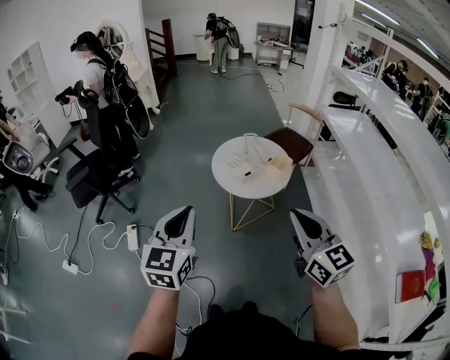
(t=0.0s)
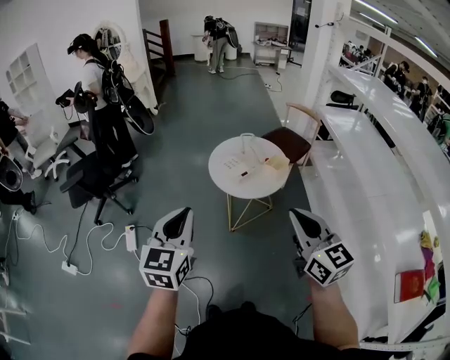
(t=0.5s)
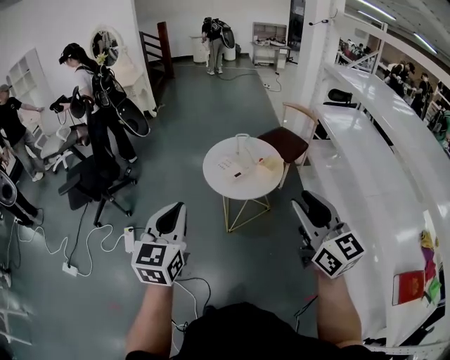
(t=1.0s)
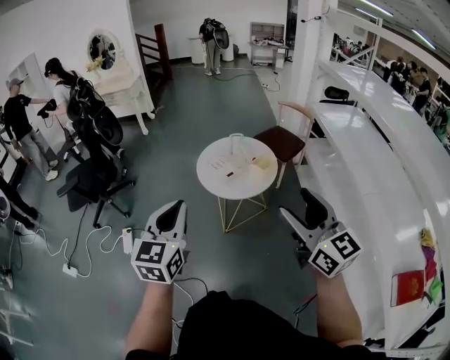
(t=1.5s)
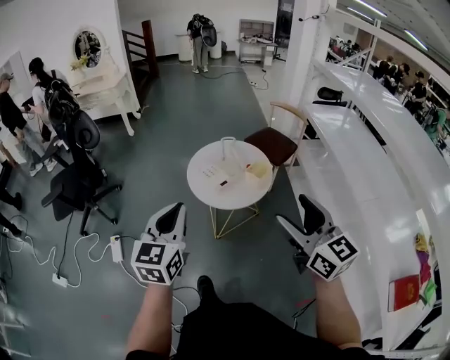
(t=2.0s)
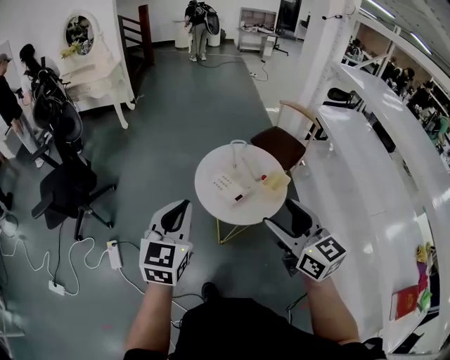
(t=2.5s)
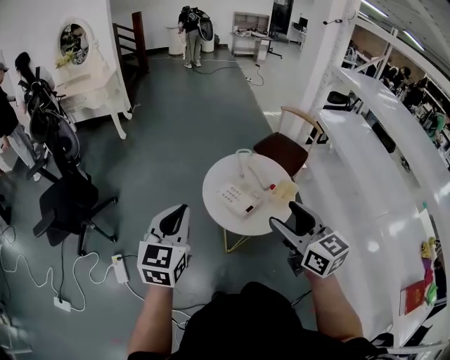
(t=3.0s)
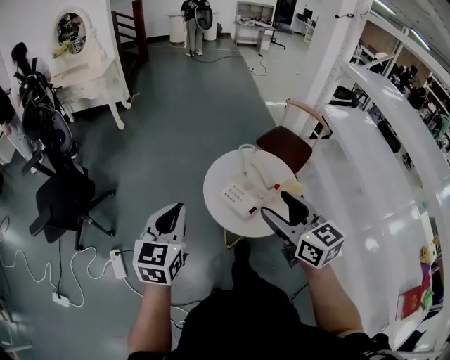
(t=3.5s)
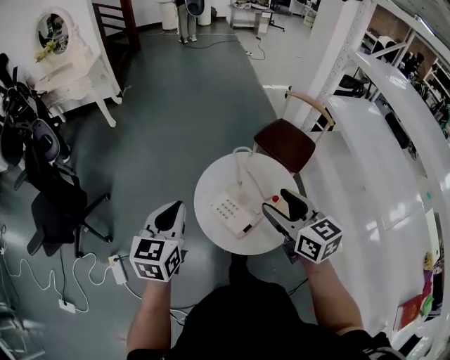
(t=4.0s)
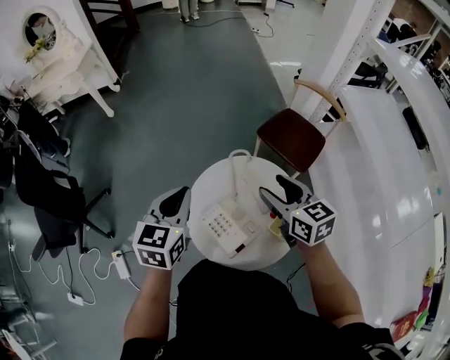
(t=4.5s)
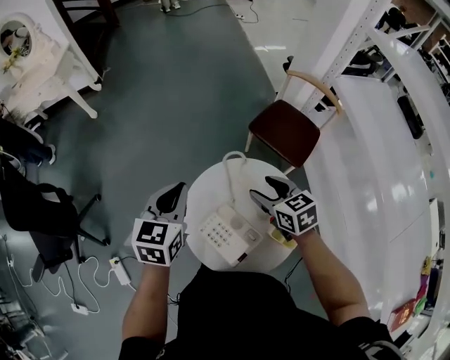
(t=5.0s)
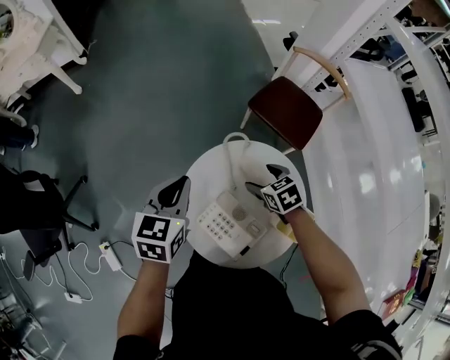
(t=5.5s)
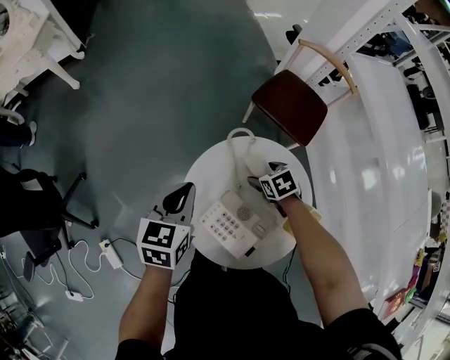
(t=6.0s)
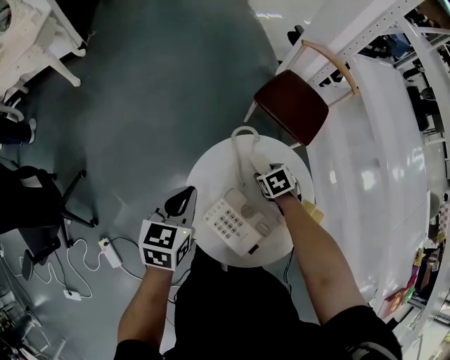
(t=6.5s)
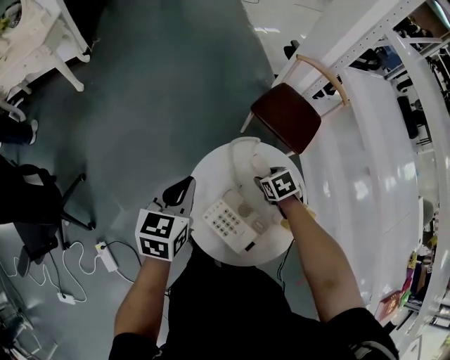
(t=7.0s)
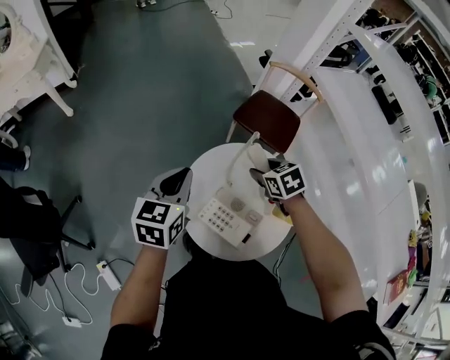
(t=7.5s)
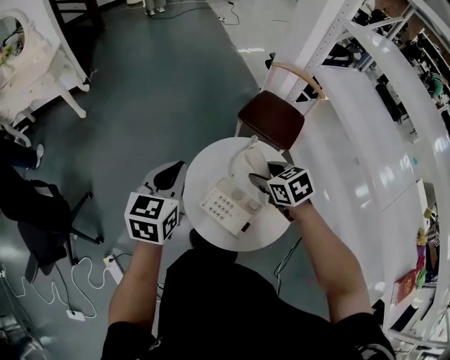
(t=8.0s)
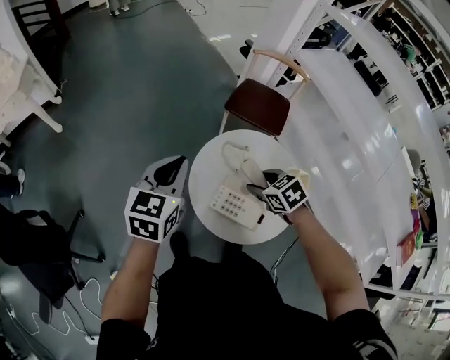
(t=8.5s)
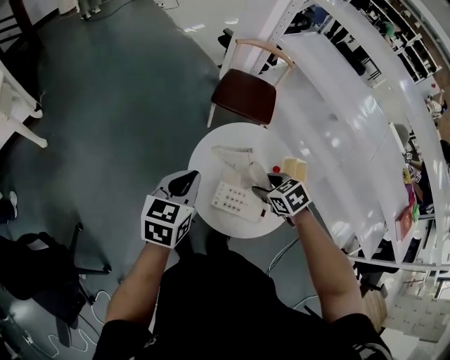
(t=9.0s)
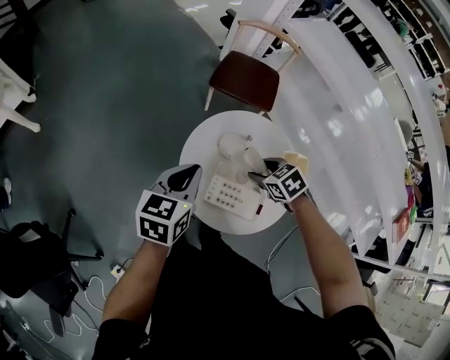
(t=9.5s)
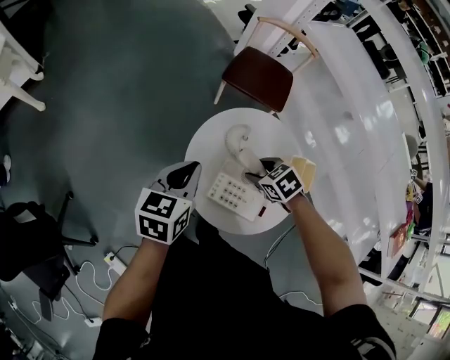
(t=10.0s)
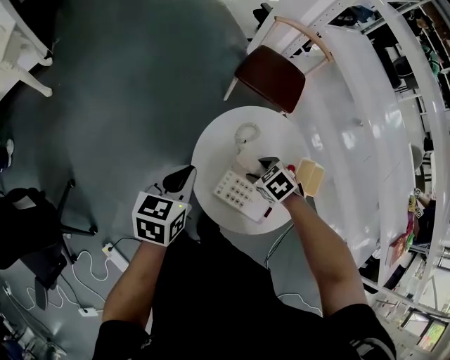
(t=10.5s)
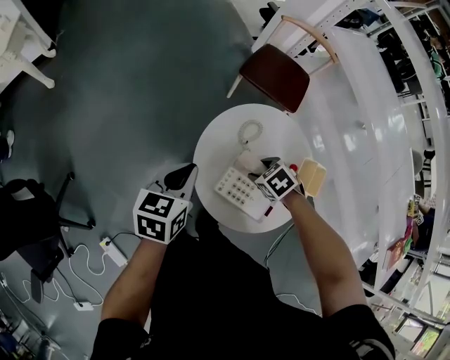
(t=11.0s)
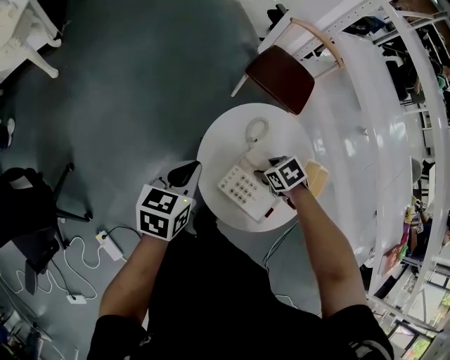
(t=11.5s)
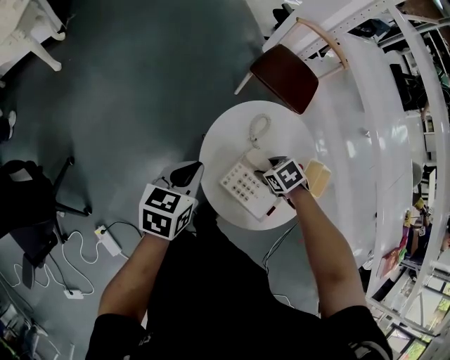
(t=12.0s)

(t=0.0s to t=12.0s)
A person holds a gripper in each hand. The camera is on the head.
t=0.0s - t=2.0s: The right gripper shifts approximately 10 cm to the right and forward, and opens its fingers, while the left gripper shifts about 10 cm forward and to the right.
t=2.0s - t=4.0s: The two grippers go some 35 cm forward.
t=4.0s - t=6.0s: The left gripper shifts approximately 25 cm forward and downward, and rotates approximately 20 degrees, while the right gripper heads downward and forward, covering roughly 40 cm, and points its fingers about 50 degrees further downward.
t=6.0s - t=8.0s: The right gripper travels upward by roughly 20 cm, and closes its fingers. The left gripper is displaced upward by some 15 cm.
t=8.0s - t=10.0s: The two grippers go some 10 cm downward. The left gripper swivels roughly 20 degrees.
t=10.0s - t=12.0s: The right gripper heads downward, covering roughly 5 cm; the left gripper shifts by approximately 10 cm.

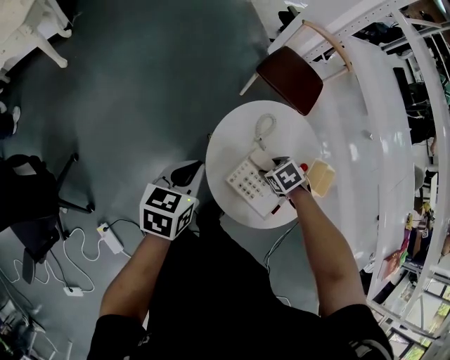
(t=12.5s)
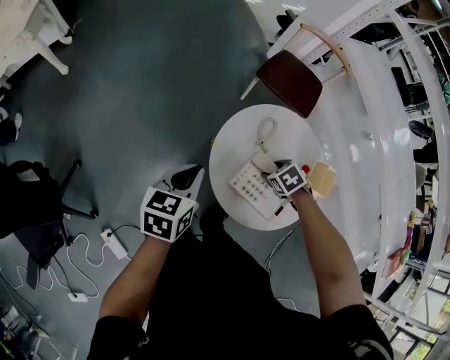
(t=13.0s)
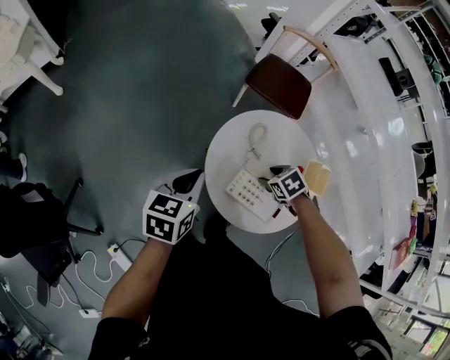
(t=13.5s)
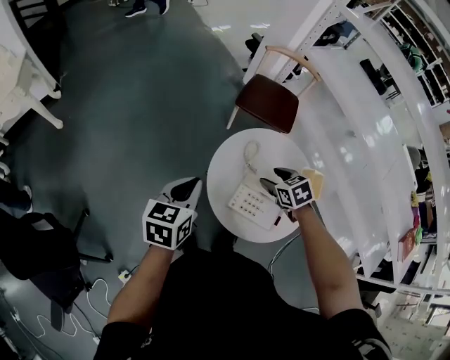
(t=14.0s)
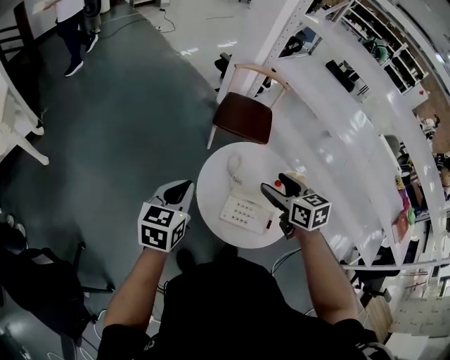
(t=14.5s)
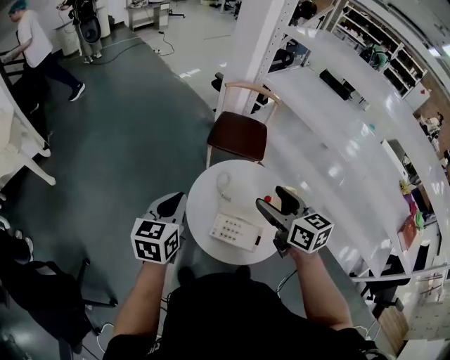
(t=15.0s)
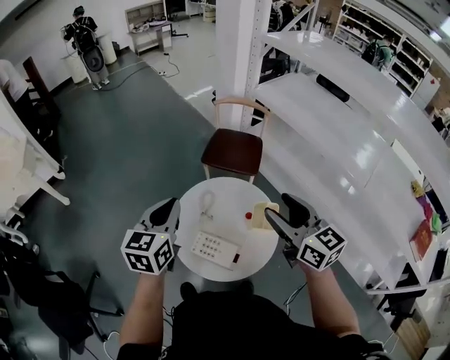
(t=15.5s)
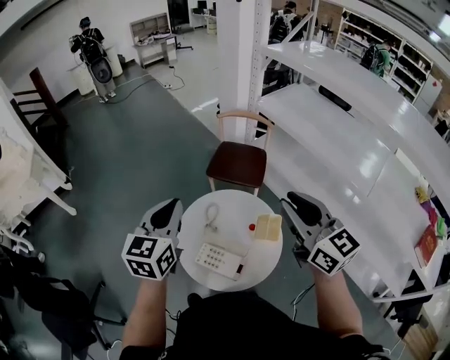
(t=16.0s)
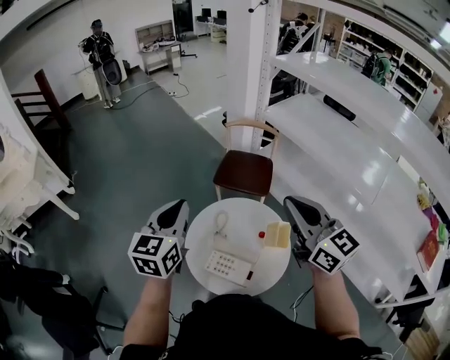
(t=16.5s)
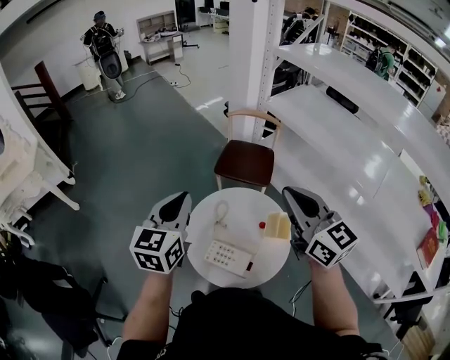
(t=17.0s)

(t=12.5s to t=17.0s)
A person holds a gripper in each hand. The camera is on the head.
t=12.5s - t=14.5s: The right gripper travels upward by roughly 25 cm, and angles its fingers upward, by about 50 degrees. The left gripper is displaced upward by roughly 10 cm, and rotates roughly 20 degrees.
t=14.5s - t=17.0s: The two grippers go some 25 cm upward and to the right. The right gripper angles its fingers upward, by approximately 30 degrees, and closes.

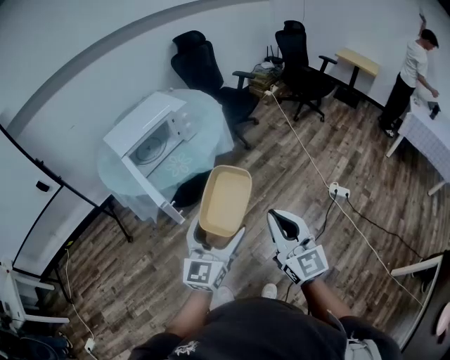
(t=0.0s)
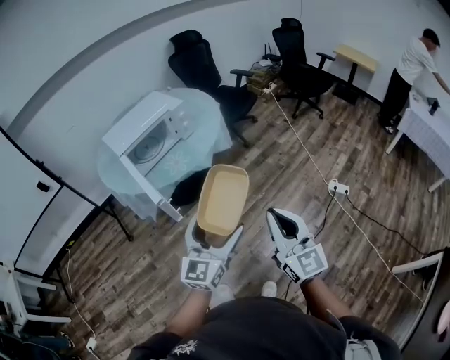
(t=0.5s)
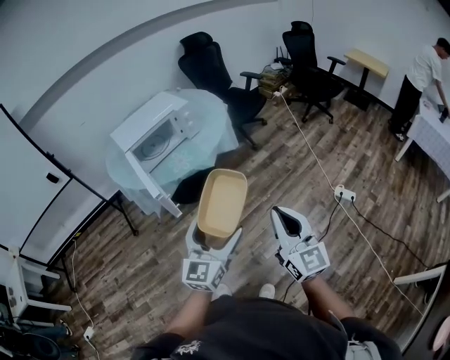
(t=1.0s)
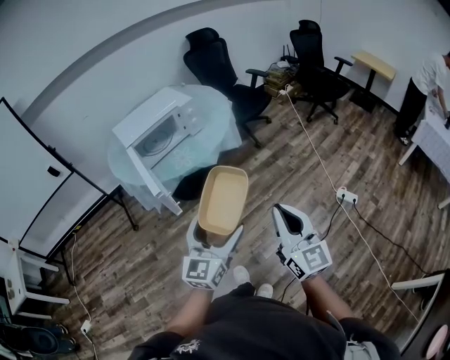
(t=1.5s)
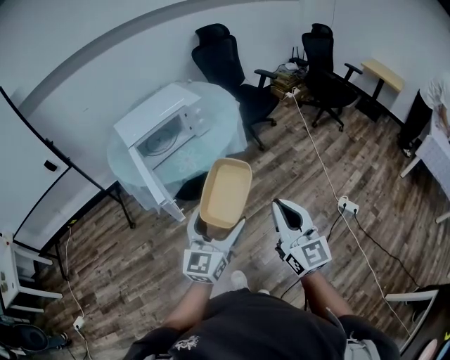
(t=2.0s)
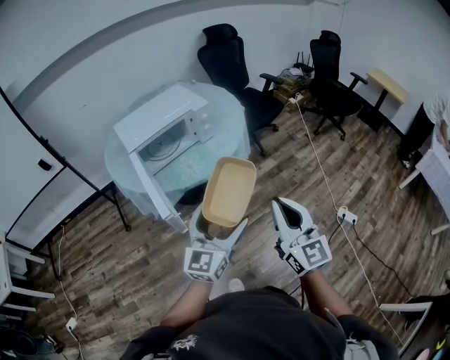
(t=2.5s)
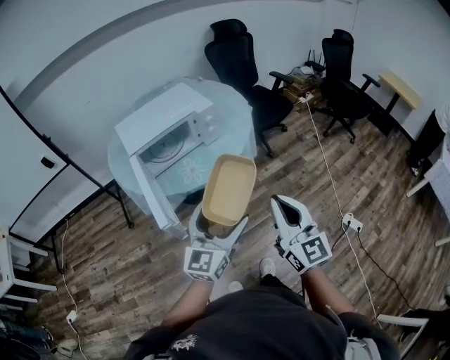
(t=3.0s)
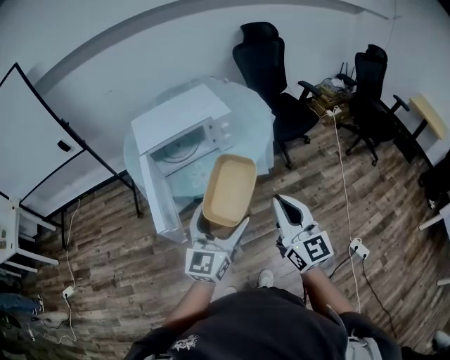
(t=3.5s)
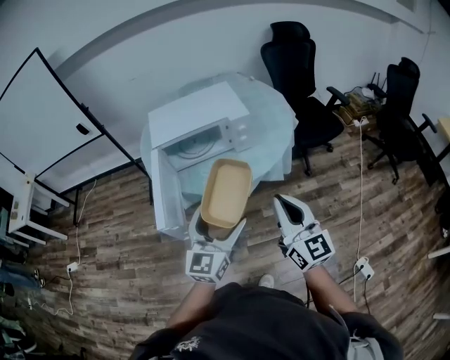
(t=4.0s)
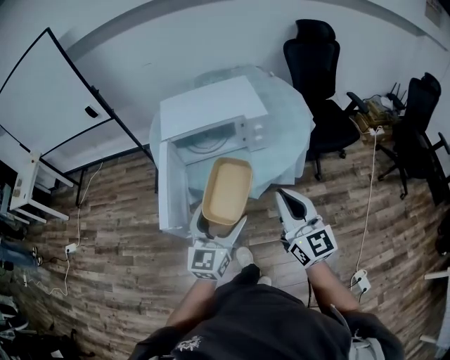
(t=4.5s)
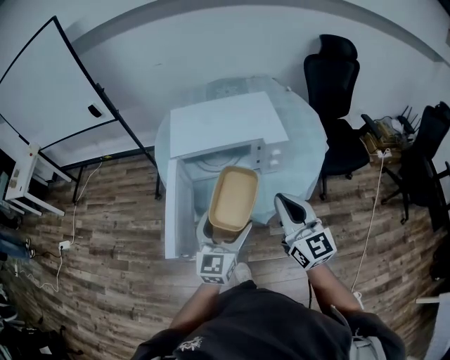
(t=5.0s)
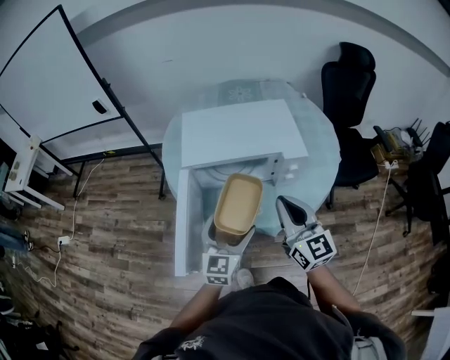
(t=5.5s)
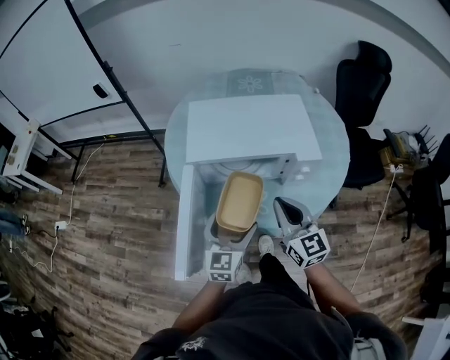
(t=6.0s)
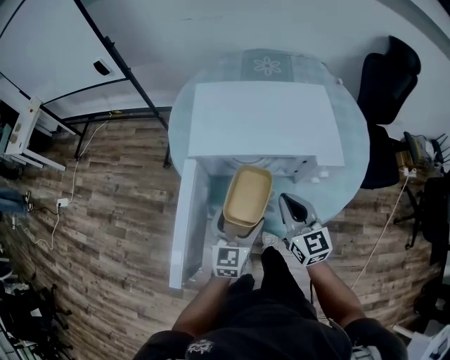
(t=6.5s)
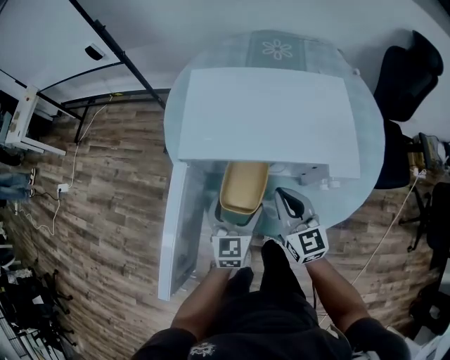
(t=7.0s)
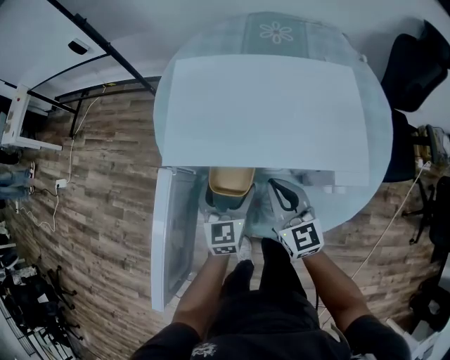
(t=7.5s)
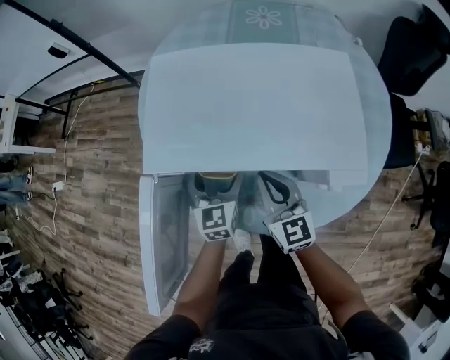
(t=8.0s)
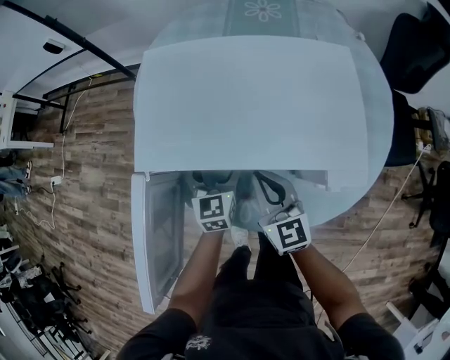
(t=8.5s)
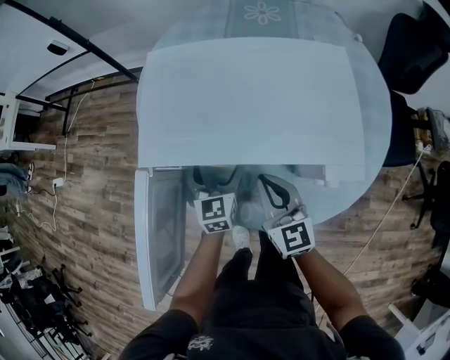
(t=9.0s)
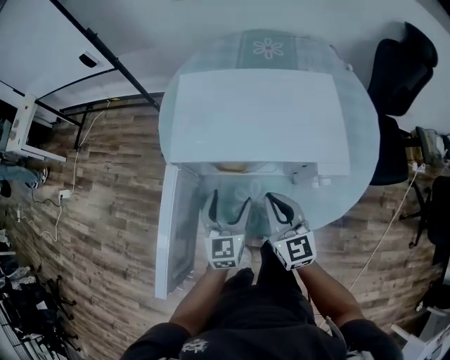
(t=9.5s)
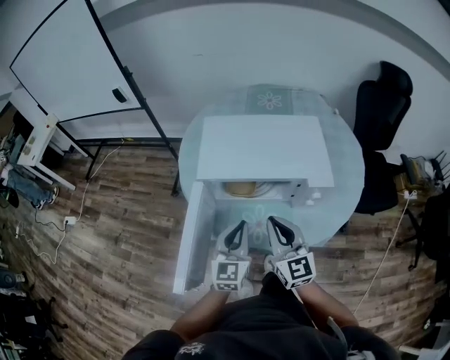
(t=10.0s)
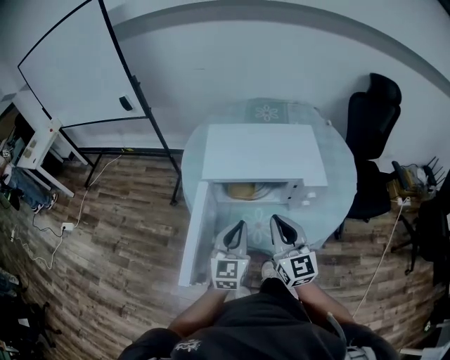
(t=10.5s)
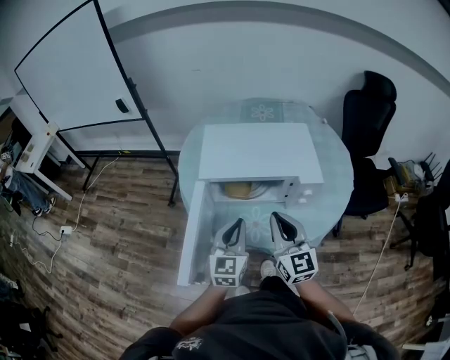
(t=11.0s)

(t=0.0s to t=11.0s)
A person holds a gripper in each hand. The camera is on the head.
t=0.0s - t=2.0s: Both grippers travel together forward, approximately 5 cm.
t=2.0s - t=3.5s: The two grippers go about 20 cm forward.
t=3.5s - t=5.5s: The left gripper travels forward and downward by approximately 25 cm, and rotates some 30 degrees, while the right gripper is displaced forward by some 30 cm, and turns by approximately 20 degrees.
t=5.5s - t=7.5s: The right gripper travels downward and forward by about 30 cm, while the left gripper heads forward and downward, covering roughly 25 cm, and changes its angle by approximately 20 degrees.
t=7.5s - t=9.0s: The left gripper ends up roughly 5 cm from where it was.
t=9.0s - t=11.0s: The left gripper travels backward and upward by roughly 30 cm, and closes up, while the right gripper heads upward and backward, covering approximately 25 cm.
